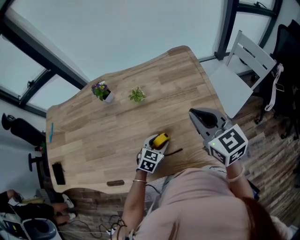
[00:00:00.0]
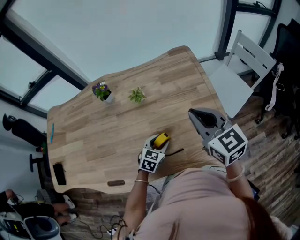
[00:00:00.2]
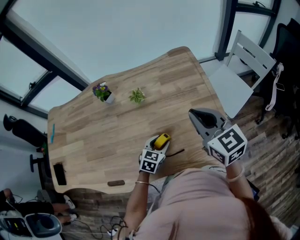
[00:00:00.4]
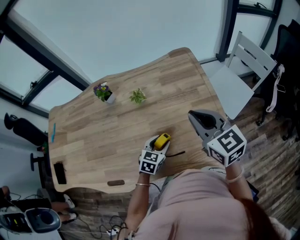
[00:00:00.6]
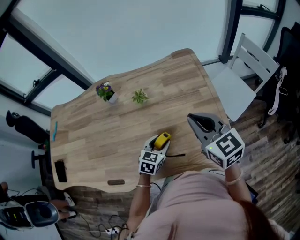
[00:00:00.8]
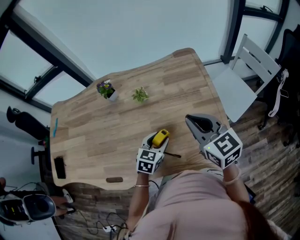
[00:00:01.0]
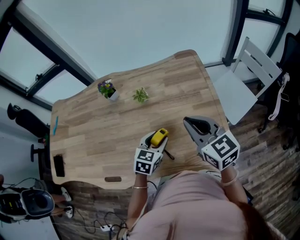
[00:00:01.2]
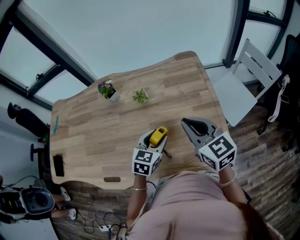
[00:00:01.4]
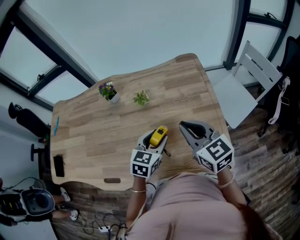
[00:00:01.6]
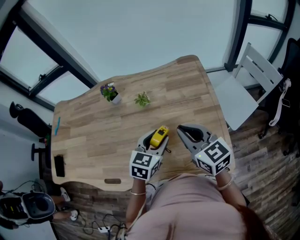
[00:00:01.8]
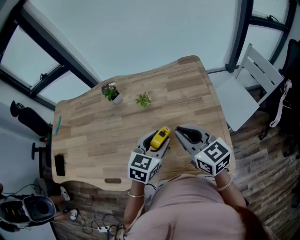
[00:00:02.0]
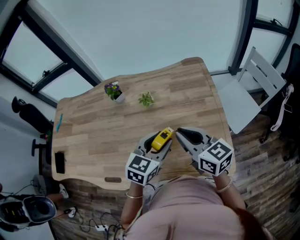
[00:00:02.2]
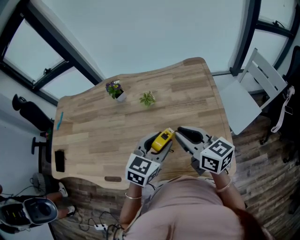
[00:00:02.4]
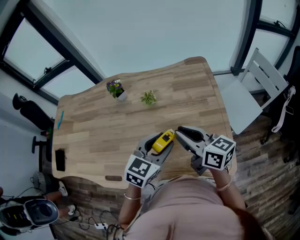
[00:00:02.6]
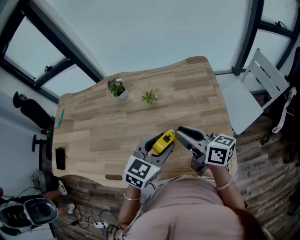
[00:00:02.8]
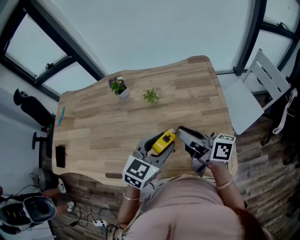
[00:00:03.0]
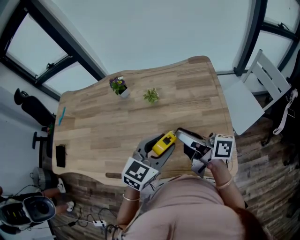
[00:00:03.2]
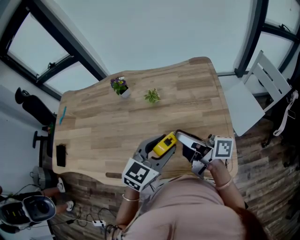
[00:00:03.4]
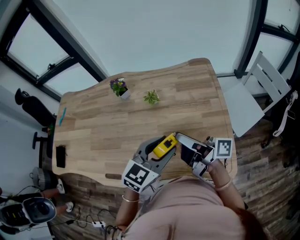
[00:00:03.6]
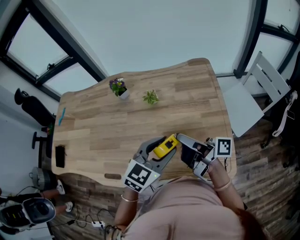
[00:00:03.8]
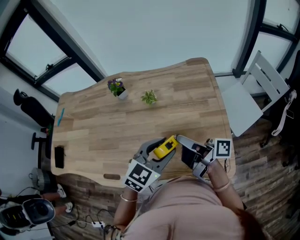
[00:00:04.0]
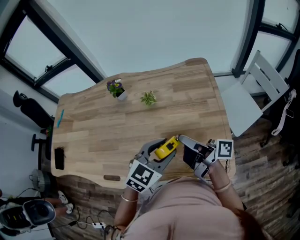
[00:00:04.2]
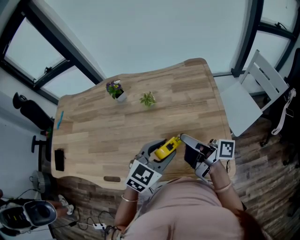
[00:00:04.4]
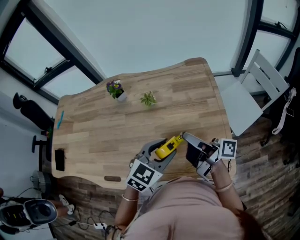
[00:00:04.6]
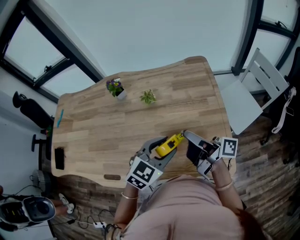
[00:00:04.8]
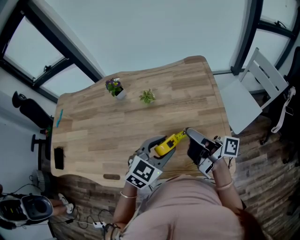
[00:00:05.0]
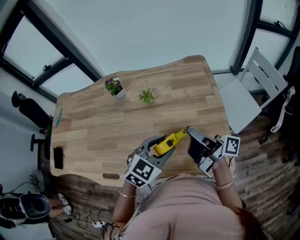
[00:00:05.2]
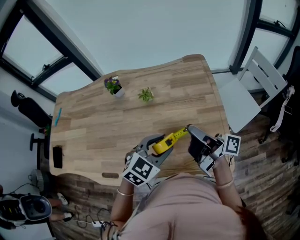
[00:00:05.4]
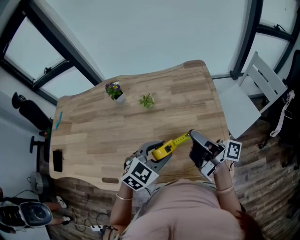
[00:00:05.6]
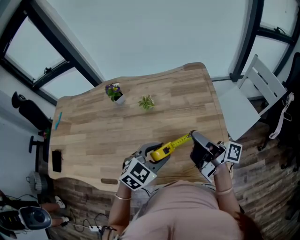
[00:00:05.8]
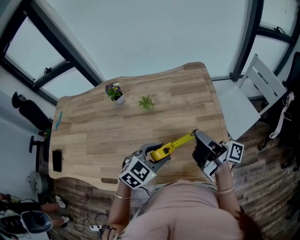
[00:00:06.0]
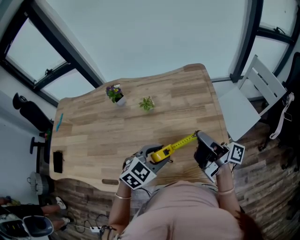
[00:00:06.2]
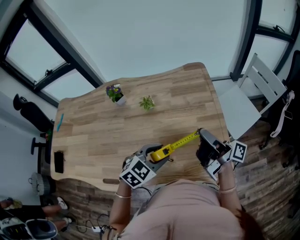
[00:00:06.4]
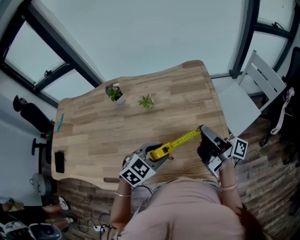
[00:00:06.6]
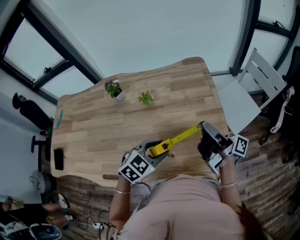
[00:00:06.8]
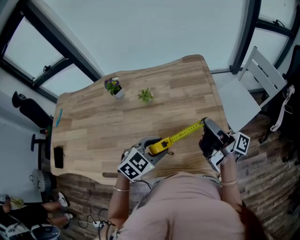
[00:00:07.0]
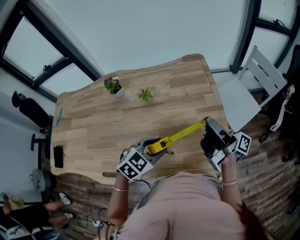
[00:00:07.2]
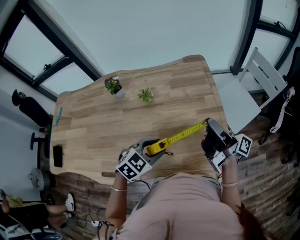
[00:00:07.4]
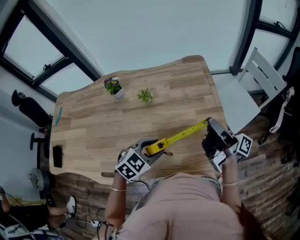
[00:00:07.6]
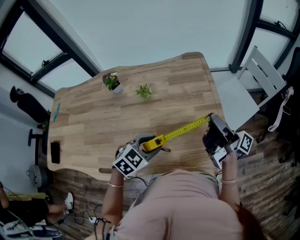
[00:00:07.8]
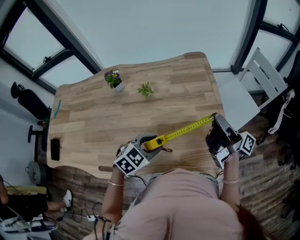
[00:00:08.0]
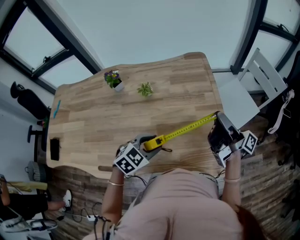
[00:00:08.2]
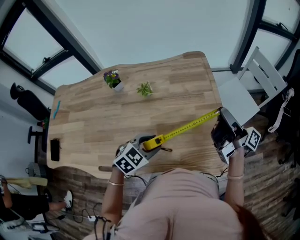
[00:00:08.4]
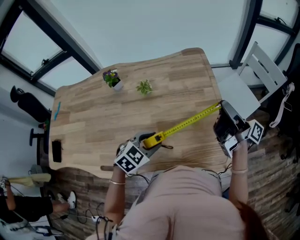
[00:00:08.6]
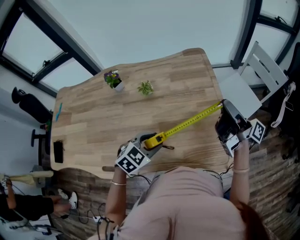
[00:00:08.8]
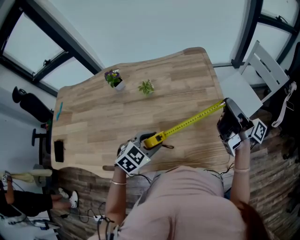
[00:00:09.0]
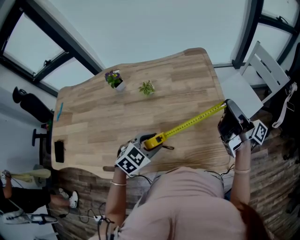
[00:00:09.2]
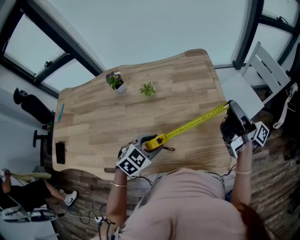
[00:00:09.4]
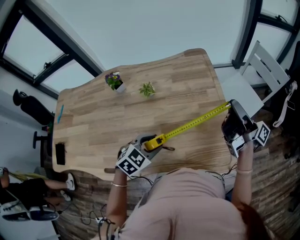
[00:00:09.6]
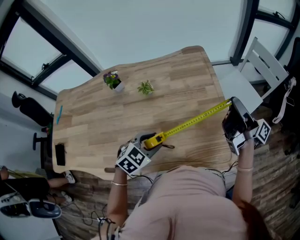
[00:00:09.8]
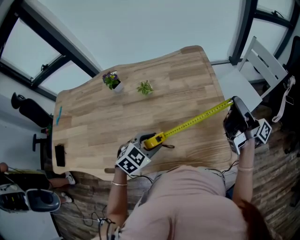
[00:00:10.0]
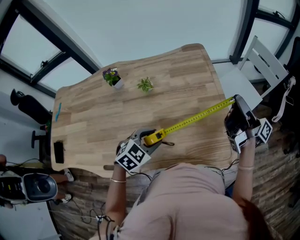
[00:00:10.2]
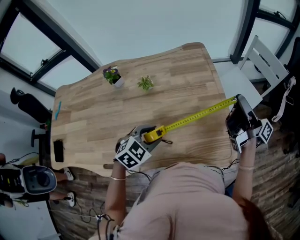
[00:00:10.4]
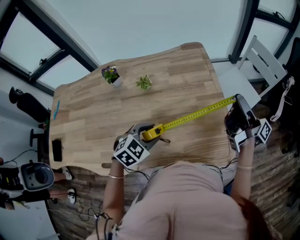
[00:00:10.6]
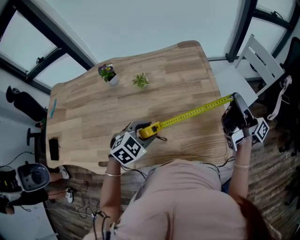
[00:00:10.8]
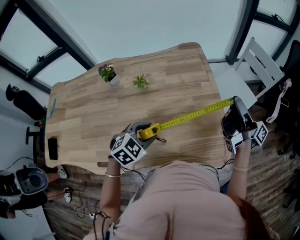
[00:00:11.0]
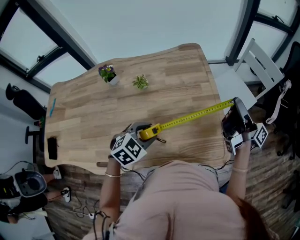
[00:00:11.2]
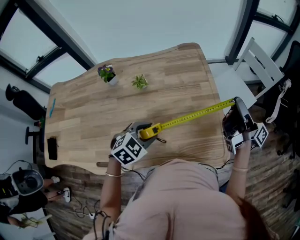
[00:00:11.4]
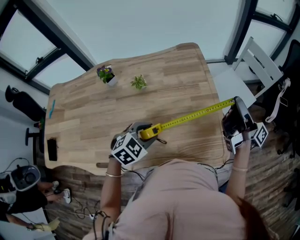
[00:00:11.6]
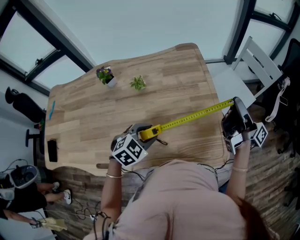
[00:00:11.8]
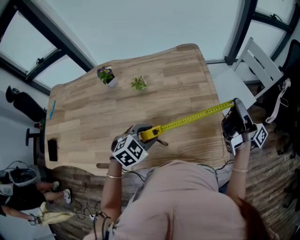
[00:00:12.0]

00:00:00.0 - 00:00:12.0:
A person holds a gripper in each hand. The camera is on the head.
00:00:00.0 - 00:00:01.6: The left gripper moves upward, roughly 15 cm.
00:00:01.6 - 00:00:03.0: The left gripper shifts some 10 cm upward; the right gripper rolls clockwise, seen from behind, by about 50 degrees.
00:00:03.0 - 00:00:04.4: The right gripper changes its angle by approximately 30 degrees.
00:00:04.4 - 00:00:06.0: The right gripper shifts some 5 cm to the right.
00:00:06.0 - 00:00:07.6: The right gripper moves to the right, approximately 5 cm.
00:00:07.6 - 00:00:09.0: The right gripper shifts roughly 5 cm to the right.
00:00:09.0 - 00:00:10.4: The grippers stay close to where they were, moving slightly.
00:00:10.4 - 00:00:12.0: The grippers make only small movements.

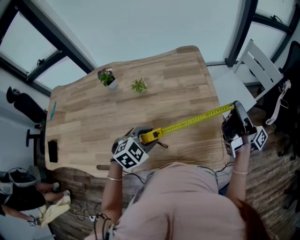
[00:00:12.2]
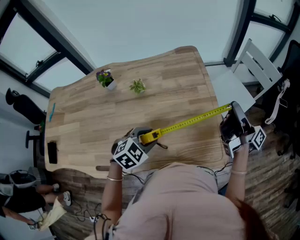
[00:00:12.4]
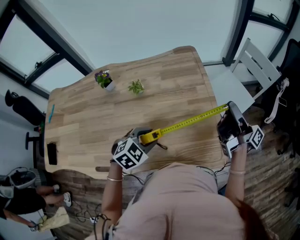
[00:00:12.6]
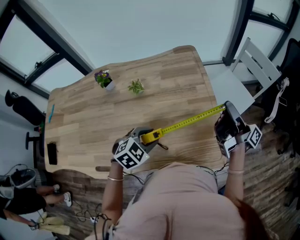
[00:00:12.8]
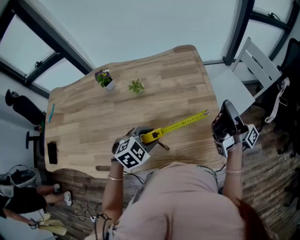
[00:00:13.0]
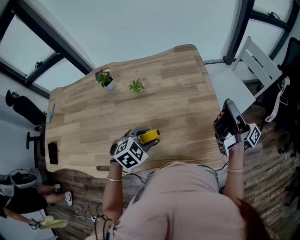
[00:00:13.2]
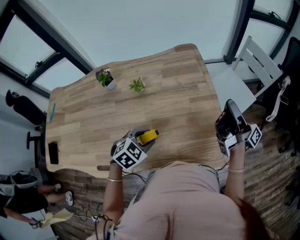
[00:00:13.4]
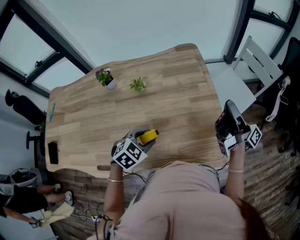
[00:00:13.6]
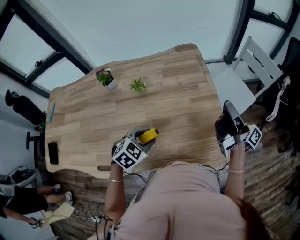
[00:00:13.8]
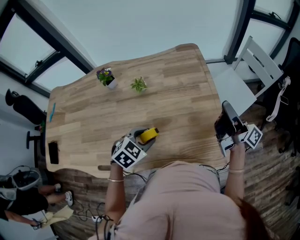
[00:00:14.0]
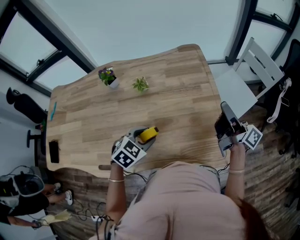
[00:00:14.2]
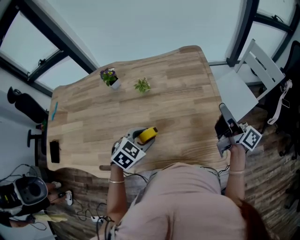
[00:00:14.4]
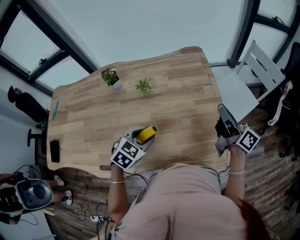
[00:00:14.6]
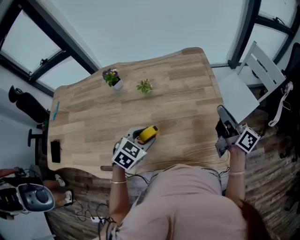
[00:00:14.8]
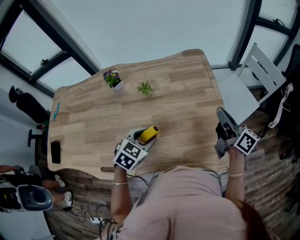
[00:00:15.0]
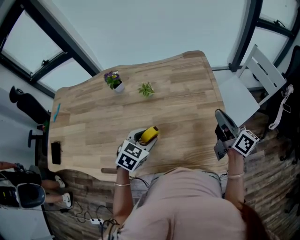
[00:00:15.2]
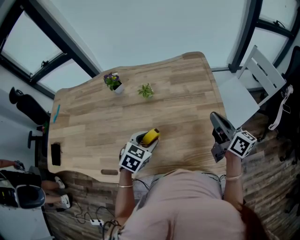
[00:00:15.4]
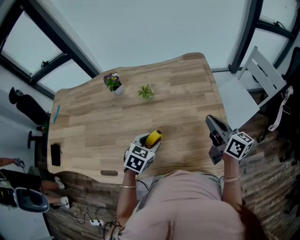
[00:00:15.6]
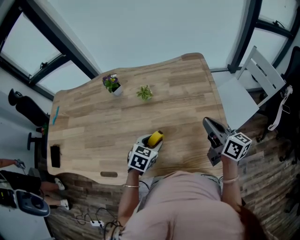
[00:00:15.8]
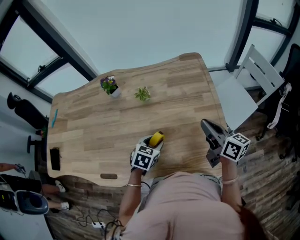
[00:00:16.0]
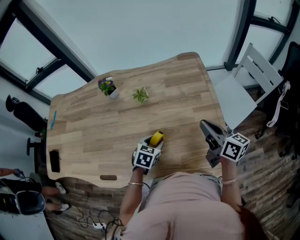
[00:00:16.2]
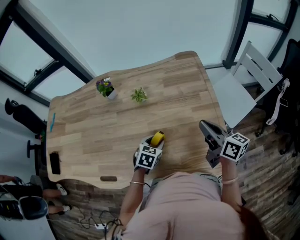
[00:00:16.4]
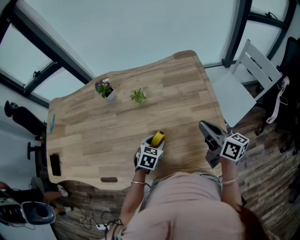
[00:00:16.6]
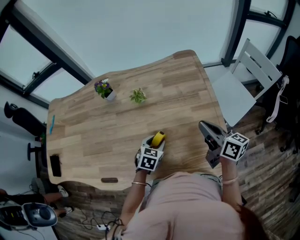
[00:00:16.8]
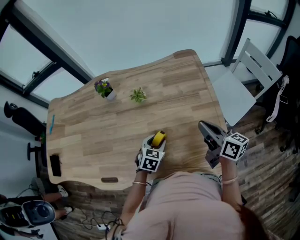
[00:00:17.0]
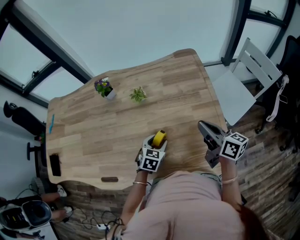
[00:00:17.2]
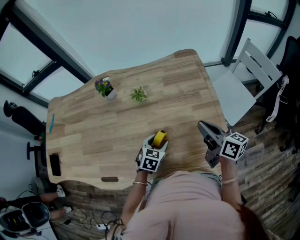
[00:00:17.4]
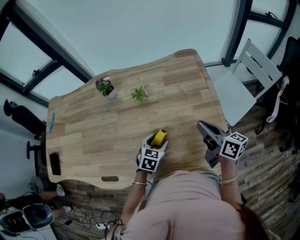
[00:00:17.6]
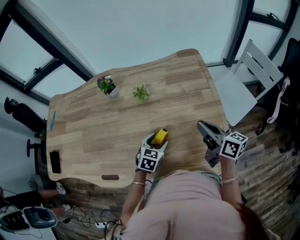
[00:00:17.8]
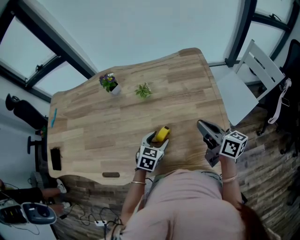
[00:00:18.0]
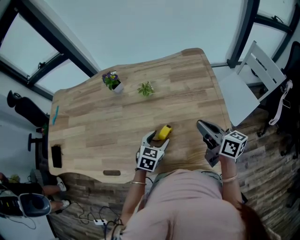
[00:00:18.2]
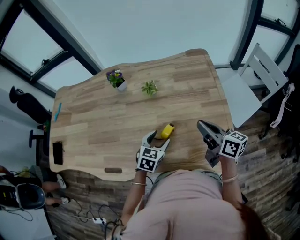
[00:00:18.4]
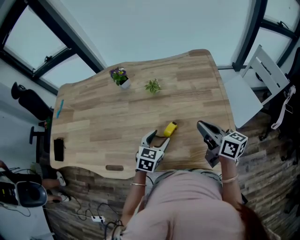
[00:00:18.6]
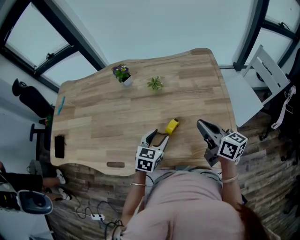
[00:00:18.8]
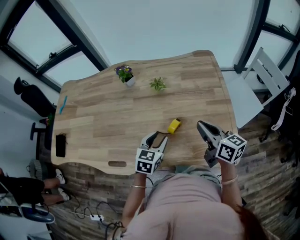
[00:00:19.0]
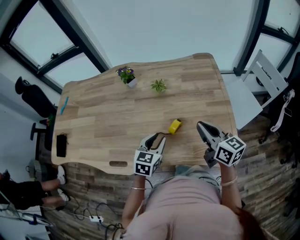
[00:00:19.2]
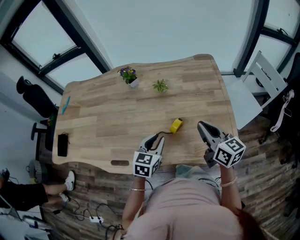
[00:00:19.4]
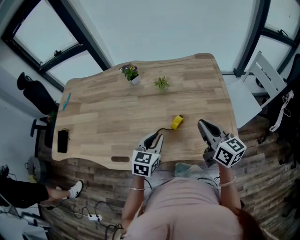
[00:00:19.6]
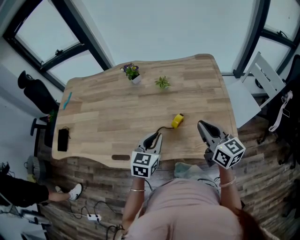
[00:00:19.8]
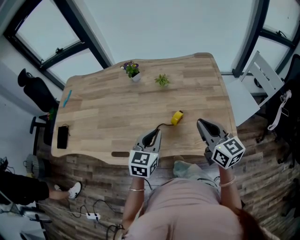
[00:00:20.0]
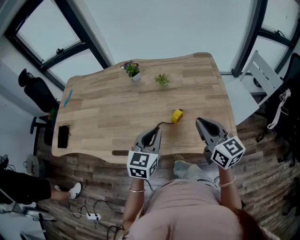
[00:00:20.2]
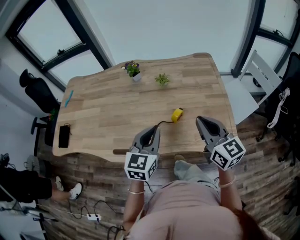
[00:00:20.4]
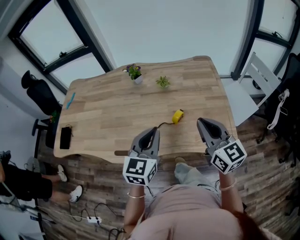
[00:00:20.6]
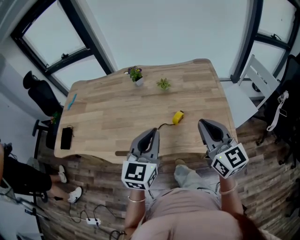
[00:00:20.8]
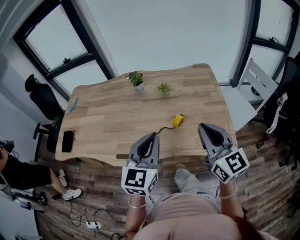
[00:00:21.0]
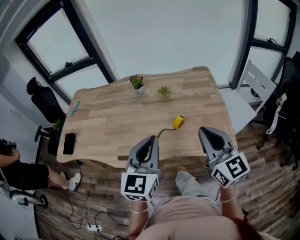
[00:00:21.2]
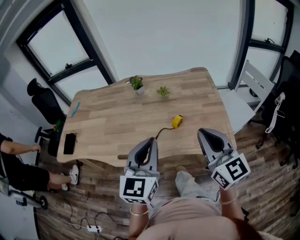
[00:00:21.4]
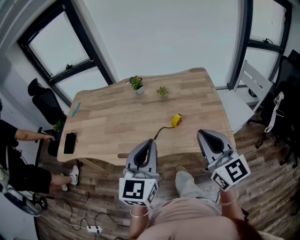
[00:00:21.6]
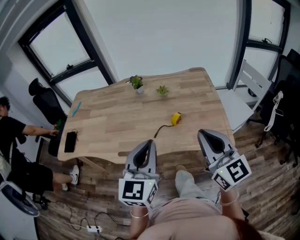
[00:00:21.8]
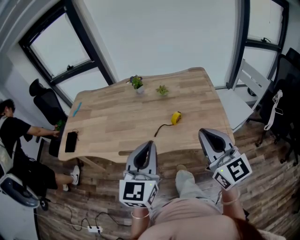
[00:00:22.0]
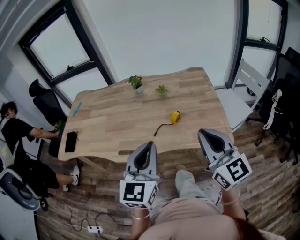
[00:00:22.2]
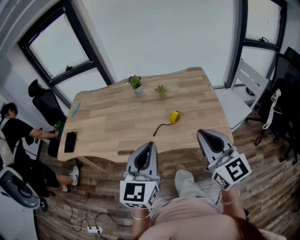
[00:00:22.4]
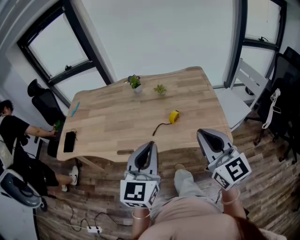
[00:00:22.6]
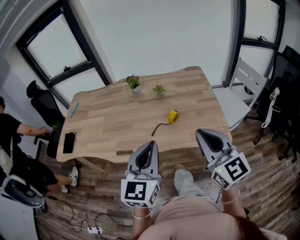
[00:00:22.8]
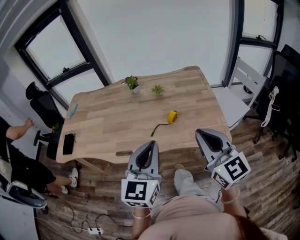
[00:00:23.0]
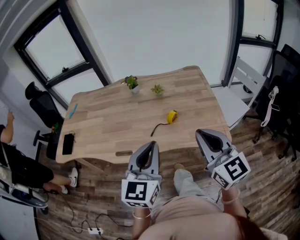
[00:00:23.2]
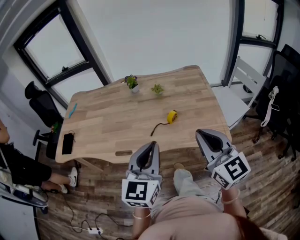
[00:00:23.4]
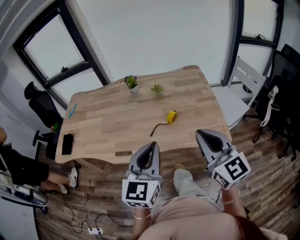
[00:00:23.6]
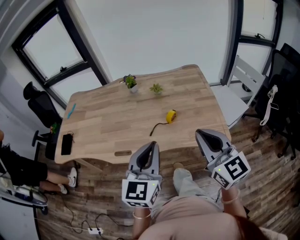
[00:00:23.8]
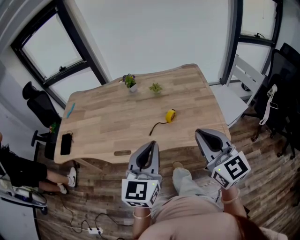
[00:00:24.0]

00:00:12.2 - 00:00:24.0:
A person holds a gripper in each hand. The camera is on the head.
00:00:12.2 - 00:00:13.6: There are only small adjustments of the grippers.
00:00:13.6 - 00:00:15.2: The right gripper heads to the left, covering some 5 cm, and turns by some 40 degrees.
00:00:15.2 - 00:00:16.6: The left gripper heads downward, covering some 10 cm, while the right gripper moves roughly 5 cm.
00:00:16.6 - 00:00:18.2: The grippers stay close to where they were, moving slightly.
00:00:18.2 - 00:00:19.6: The right gripper shifts about 10 cm to the left, upward and backward. Meanwhile the left gripper moves upward, to the left and backward, some 15 cm, and closes.
00:00:19.6 - 00:00:21.0: Both grippers travel together upward and backward, roughly 20 cm. The left gripper rotates approximately 20 degrees, while the right gripper changes its angle by approximately 30 degrees.
00:00:21.0 - 00:00:22.6: The two grippers go approximately 10 cm backward.
00:00:22.6 - 00:00:24.0: The grippers make only small movements.
